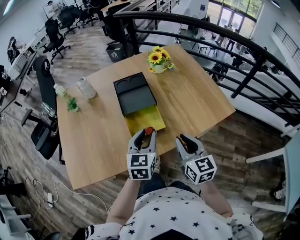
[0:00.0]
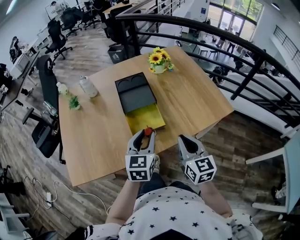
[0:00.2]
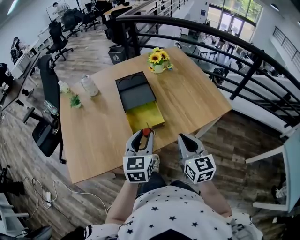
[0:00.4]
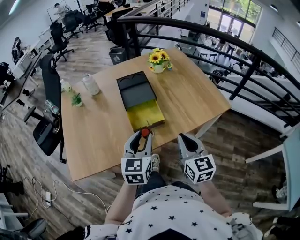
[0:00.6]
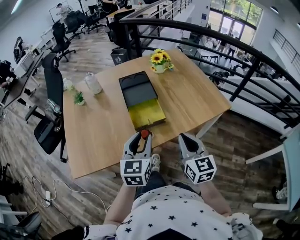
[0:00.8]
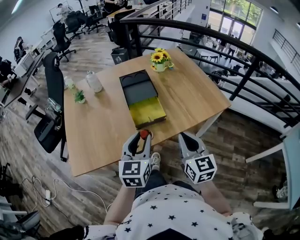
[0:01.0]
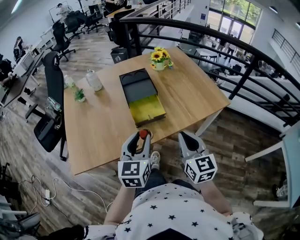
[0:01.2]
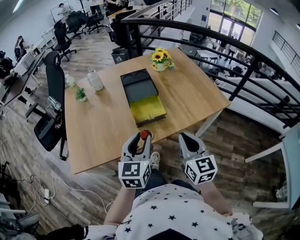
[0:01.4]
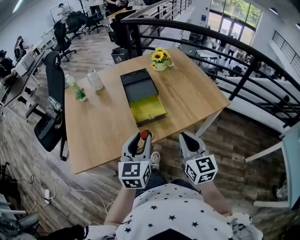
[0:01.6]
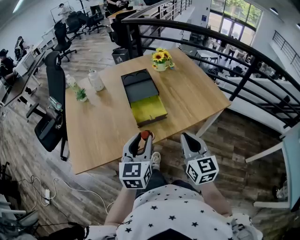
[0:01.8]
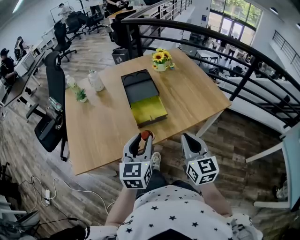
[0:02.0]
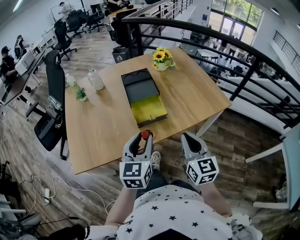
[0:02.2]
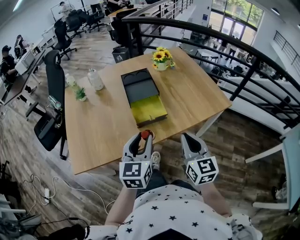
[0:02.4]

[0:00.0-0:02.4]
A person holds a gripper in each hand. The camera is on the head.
0:00.0 to 0:01.2: Both grippers travel together backward, some 10 cm.
0:01.2 to 0:02.4: The two grippers keep their place.

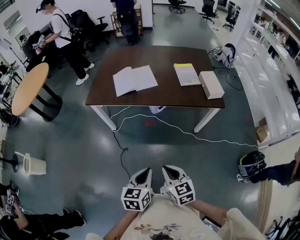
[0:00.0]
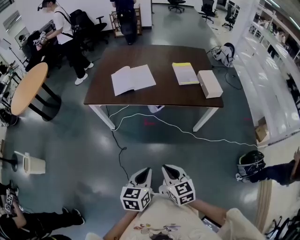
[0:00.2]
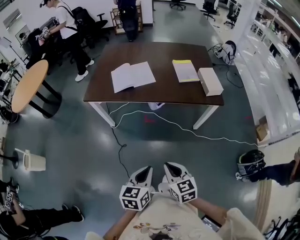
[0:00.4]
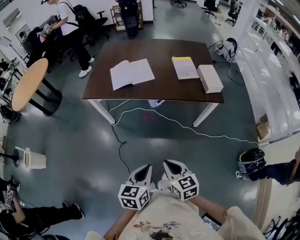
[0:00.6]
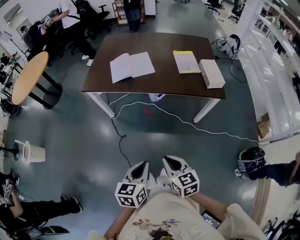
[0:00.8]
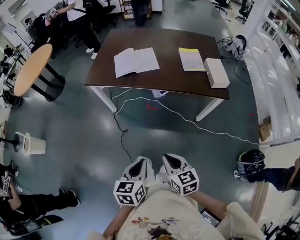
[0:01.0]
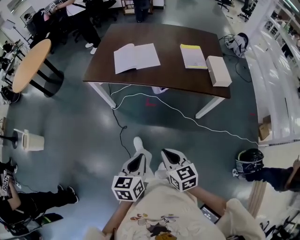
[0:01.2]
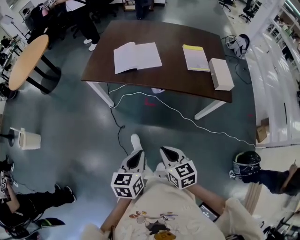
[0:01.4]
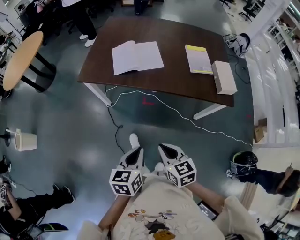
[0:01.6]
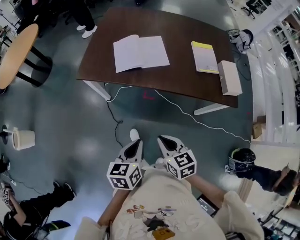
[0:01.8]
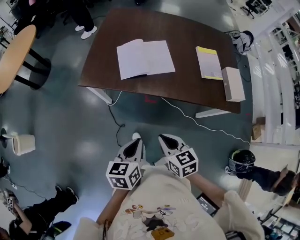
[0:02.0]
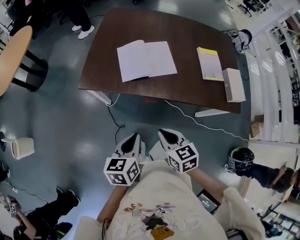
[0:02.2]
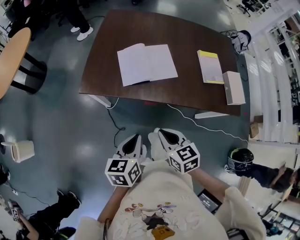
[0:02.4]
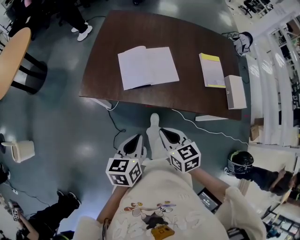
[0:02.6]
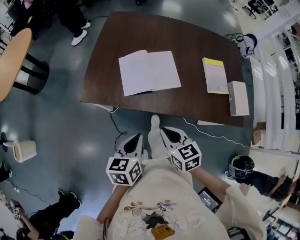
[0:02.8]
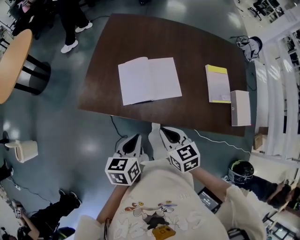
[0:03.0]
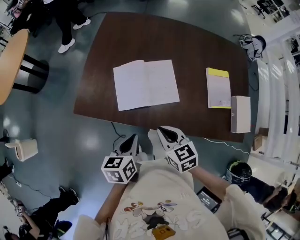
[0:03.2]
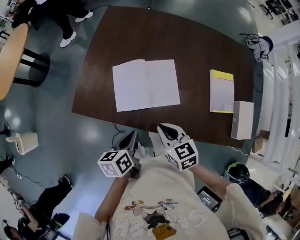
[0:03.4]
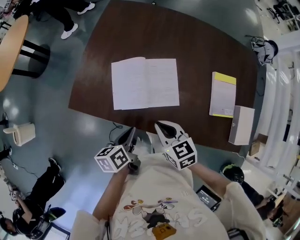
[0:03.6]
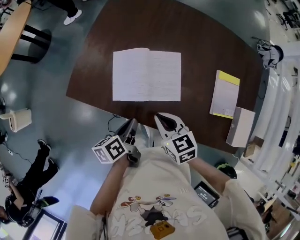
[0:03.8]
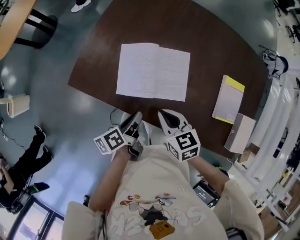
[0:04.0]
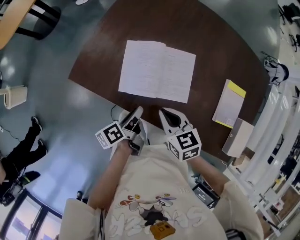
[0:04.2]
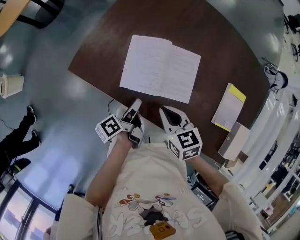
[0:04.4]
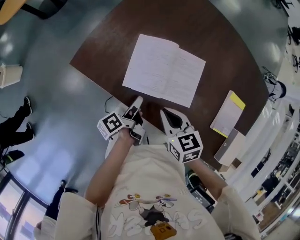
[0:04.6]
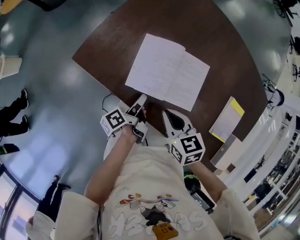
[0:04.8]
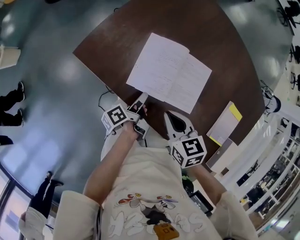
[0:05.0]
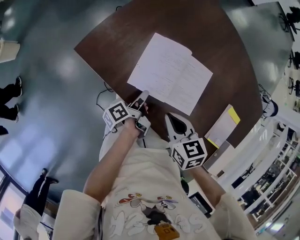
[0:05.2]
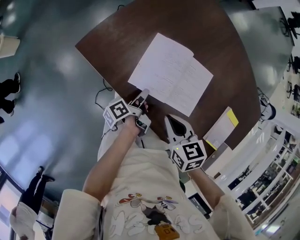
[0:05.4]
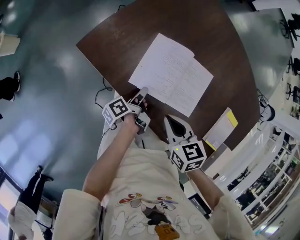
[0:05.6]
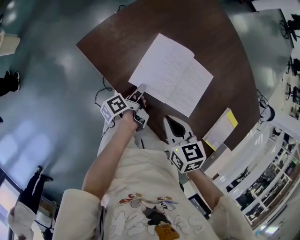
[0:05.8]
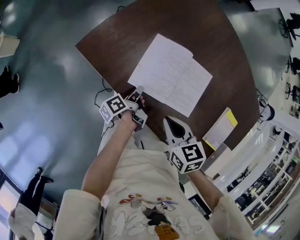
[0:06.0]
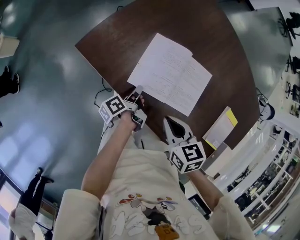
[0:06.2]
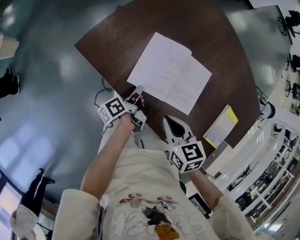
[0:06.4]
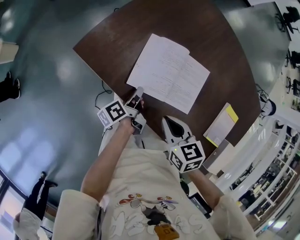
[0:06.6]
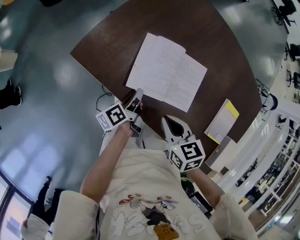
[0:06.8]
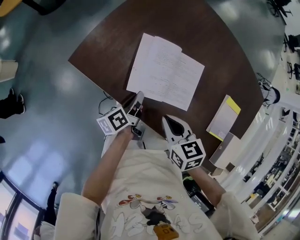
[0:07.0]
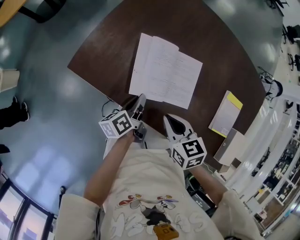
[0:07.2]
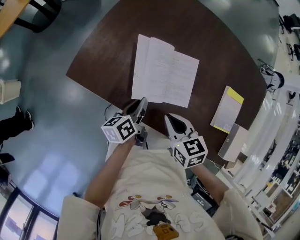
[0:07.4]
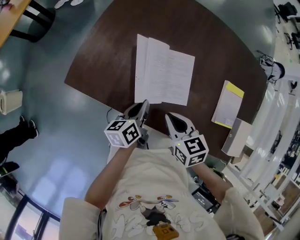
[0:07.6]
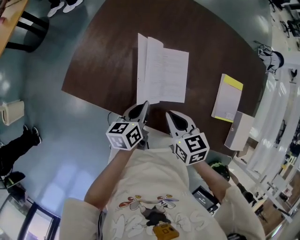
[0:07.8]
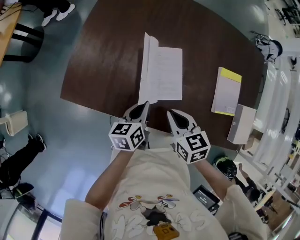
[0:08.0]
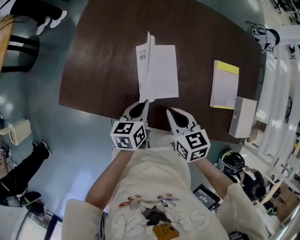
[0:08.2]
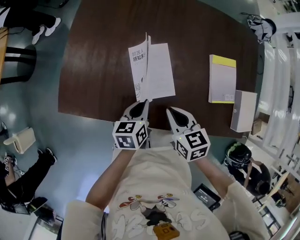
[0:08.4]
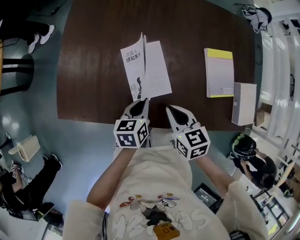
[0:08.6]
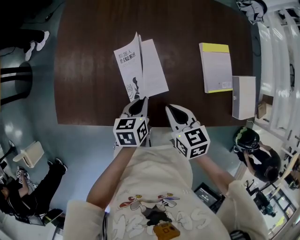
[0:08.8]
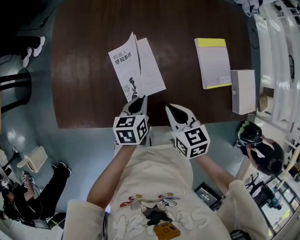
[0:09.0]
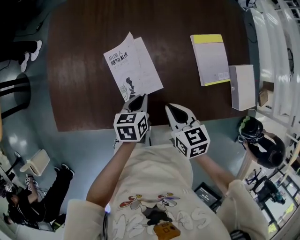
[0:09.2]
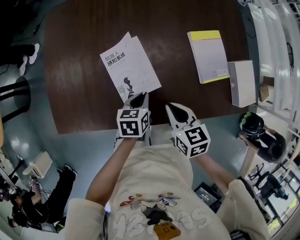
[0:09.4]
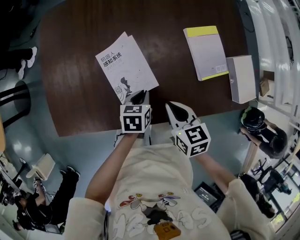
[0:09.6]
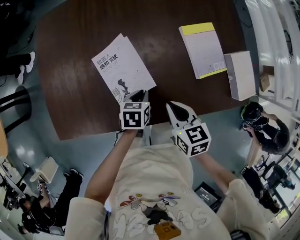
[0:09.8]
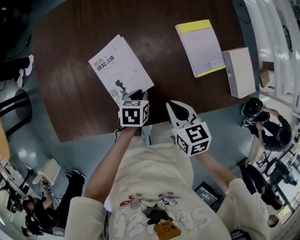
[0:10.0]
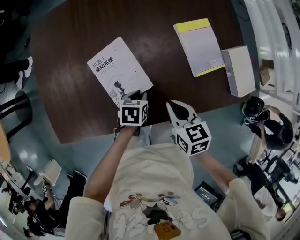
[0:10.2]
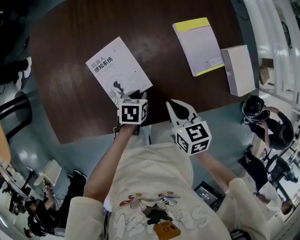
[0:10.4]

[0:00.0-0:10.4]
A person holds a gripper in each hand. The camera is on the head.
0:00.0 to 0:01.4: The two grippers go roughly 5 cm forward.
0:01.4 to 0:03.0: The pair of grippers is taken forward, some 40 cm.
0:03.0 to 0:04.4: The left gripper goes about 20 cm downward and forward, rolls counterclockwise, seen from behind, by roughly 70 degrees, and opens up. Meanwhile the right gripper is displaced forward and downward by roughly 15 cm.
0:04.4 to 0:06.0: The left gripper heads downward, covering about 10 cm, and closes.
0:06.0 to 0:07.4: The left gripper is displaced upward and to the right by about 10 cm, and rotates around the line of its fingers by some 40 degrees, clockwise from behind.
0:07.4 to 0:09.0: The right gripper ends up about 15 cm from where it was, and rotates approximately 30 degrees, while the left gripper moves roughly 15 cm, and turns by roughly 50 degrees.
0:09.0 to 0:10.4: The left gripper shifts roughly 10 cm downward and to the right, and swivels about 30 degrees. Meanwhile the right gripper goes approximately 5 cm to the right.

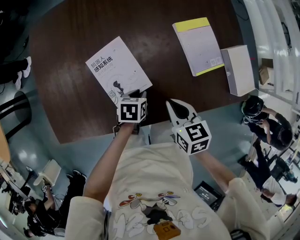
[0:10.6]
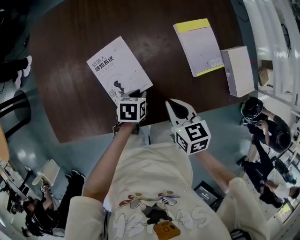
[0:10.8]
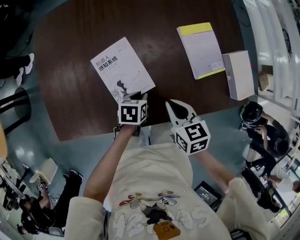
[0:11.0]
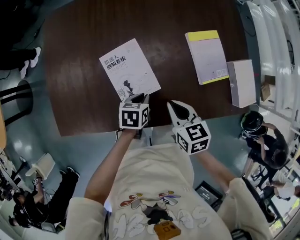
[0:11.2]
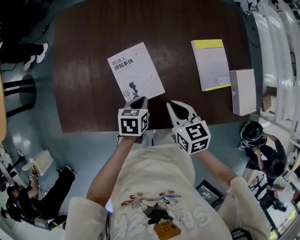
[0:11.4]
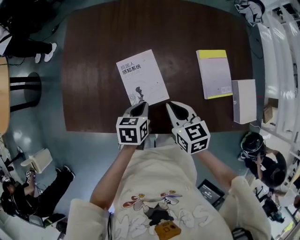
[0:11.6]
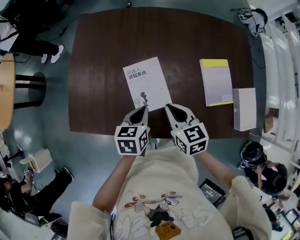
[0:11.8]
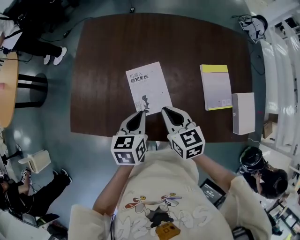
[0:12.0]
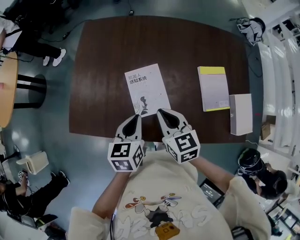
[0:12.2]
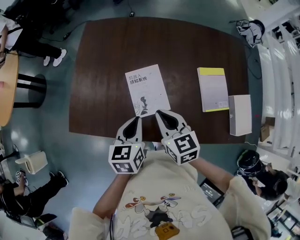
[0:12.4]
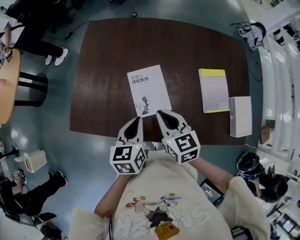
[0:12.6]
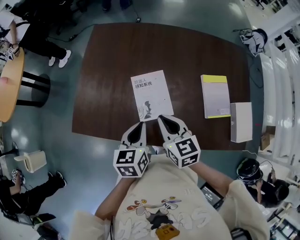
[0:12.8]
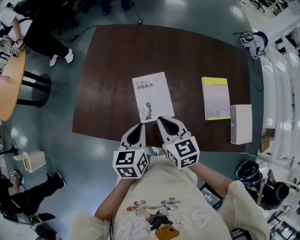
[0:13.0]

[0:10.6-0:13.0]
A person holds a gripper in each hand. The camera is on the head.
0:10.6 to 0:11.8: The right gripper moves some 10 cm, and rotates approximately 20 degrees. The left gripper heads upward, covering about 15 cm, and rotates some 30 degrees.
0:11.8 to 0:13.0: The left gripper moves upward, approximately 10 cm, while the right gripper travels to the left and upward by approximately 10 cm.

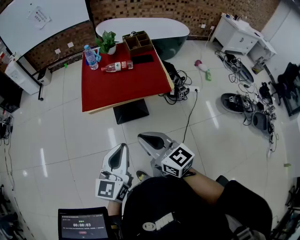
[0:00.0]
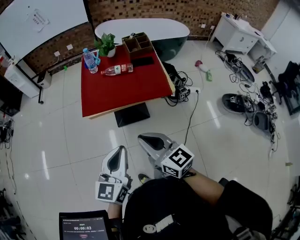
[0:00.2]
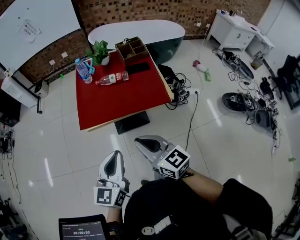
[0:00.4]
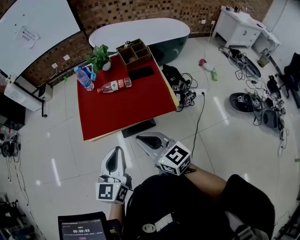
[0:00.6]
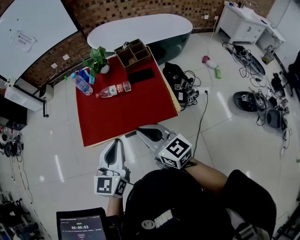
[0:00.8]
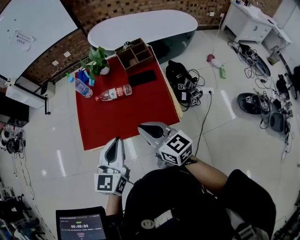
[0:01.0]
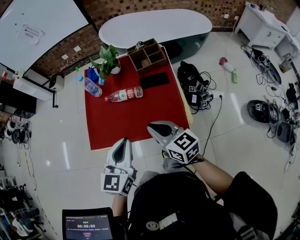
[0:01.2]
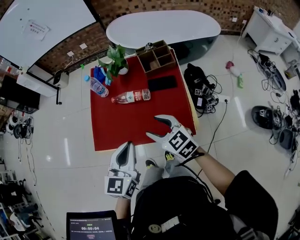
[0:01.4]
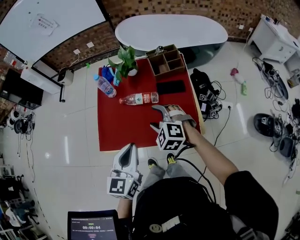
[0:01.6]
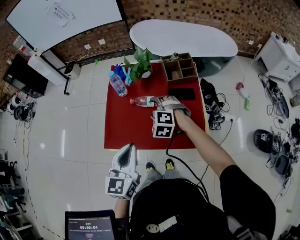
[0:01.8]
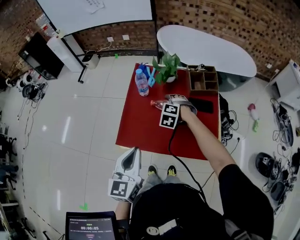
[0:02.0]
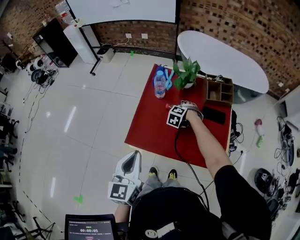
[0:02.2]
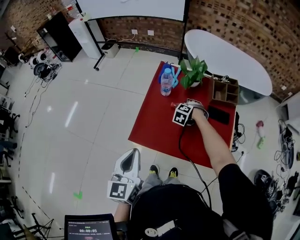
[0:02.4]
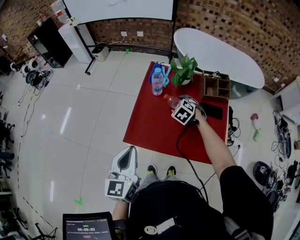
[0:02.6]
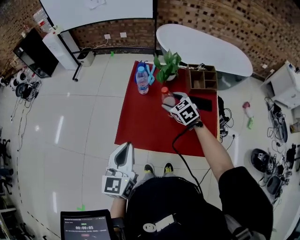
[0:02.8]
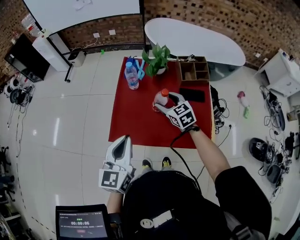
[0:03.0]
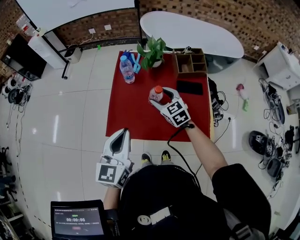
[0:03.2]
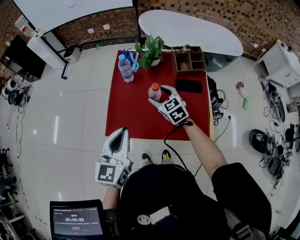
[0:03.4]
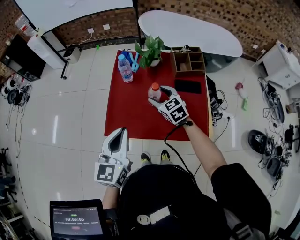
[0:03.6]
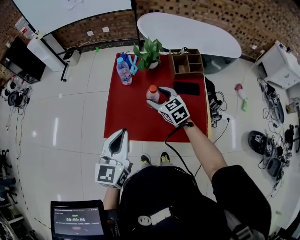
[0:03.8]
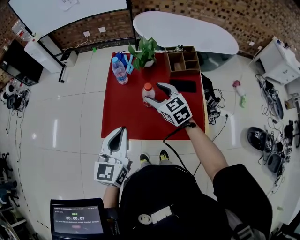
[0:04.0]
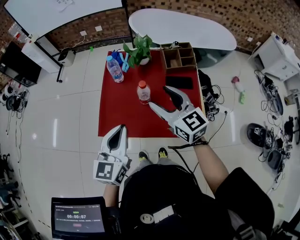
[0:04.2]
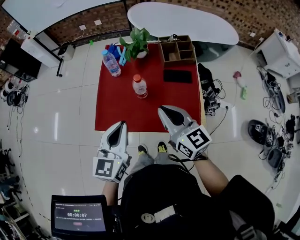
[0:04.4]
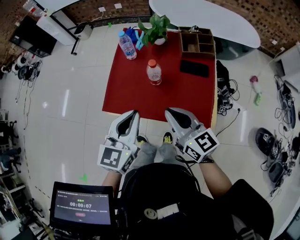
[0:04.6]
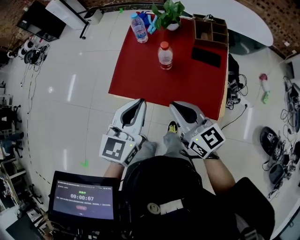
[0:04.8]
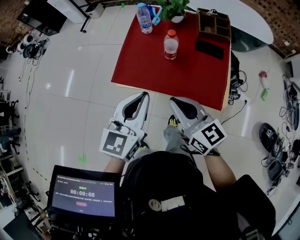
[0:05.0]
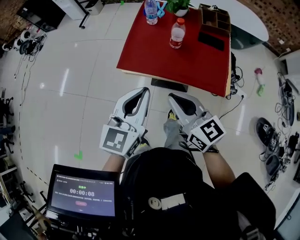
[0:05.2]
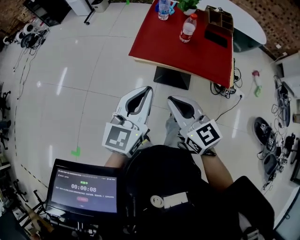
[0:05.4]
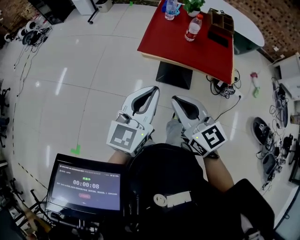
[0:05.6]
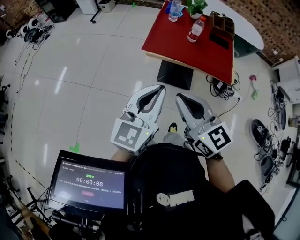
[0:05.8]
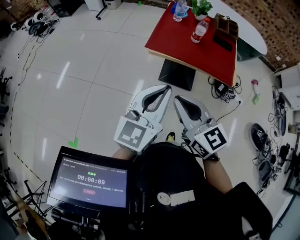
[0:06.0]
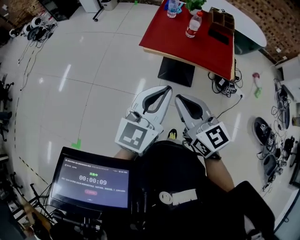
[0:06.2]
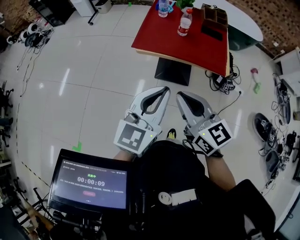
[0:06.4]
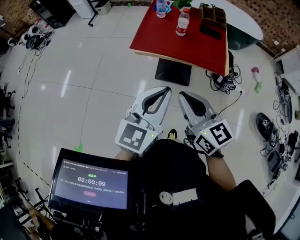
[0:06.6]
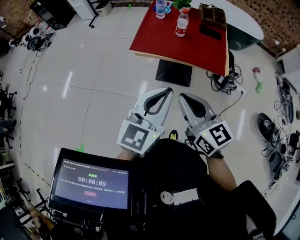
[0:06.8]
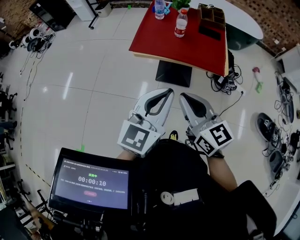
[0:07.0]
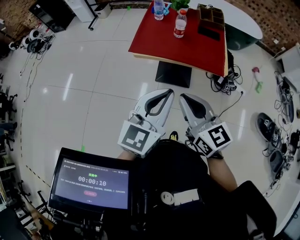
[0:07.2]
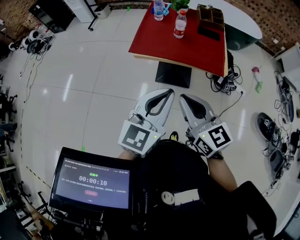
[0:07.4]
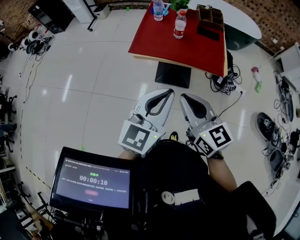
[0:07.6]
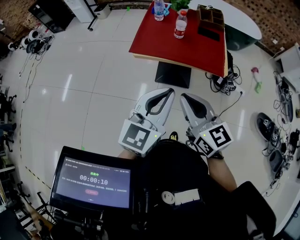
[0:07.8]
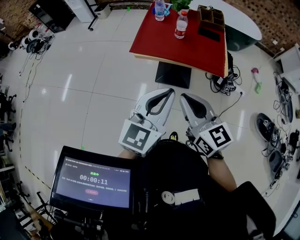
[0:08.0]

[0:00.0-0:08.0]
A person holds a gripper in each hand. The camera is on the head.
0:00.0 to 0:01.6: The grippers both shift forward by some 35 cm. The right gripper rotates around the line of its fingers by some 50 degrees, counterclockwise from behind, and opens up.
0:01.6 to 0:03.2: The left gripper heads to the left, covering roughly 10 cm. The right gripper goes about 10 cm forward and to the left, and changes its angle by about 30 degrees.
0:03.2 to 0:04.8: The left gripper shifts some 10 cm to the right and backward. The right gripper shifts approximately 25 cm backward and upward, swivels approximately 30 degrees, and closes up.
0:04.8 to 0:06.4: The right gripper is displaced backward and to the left by approximately 30 cm; the left gripper goes roughly 30 cm backward.
0:06.4 to 0:08.0: There are only small adjustments of the grippers.
